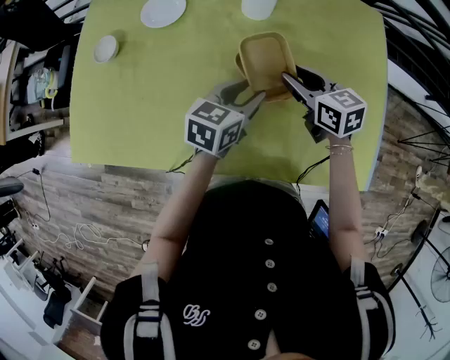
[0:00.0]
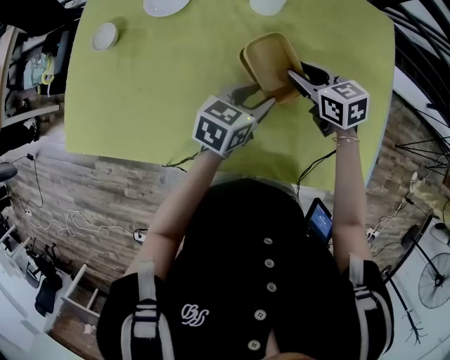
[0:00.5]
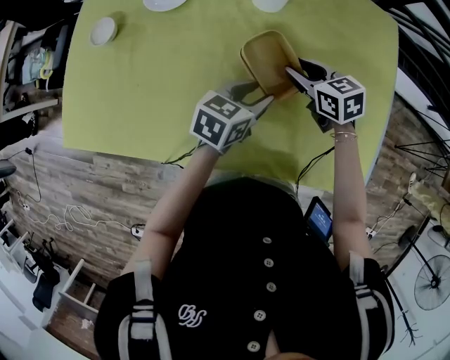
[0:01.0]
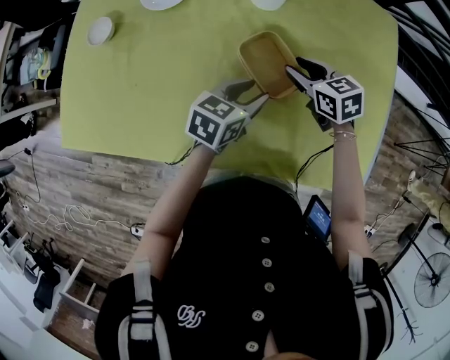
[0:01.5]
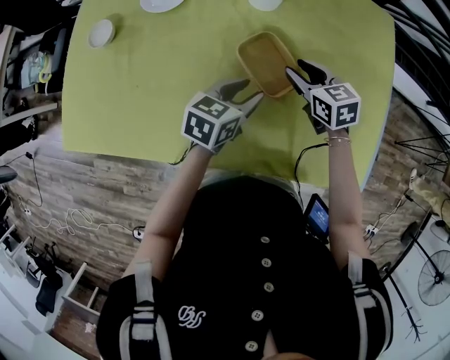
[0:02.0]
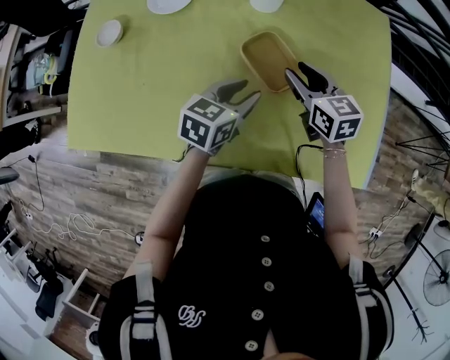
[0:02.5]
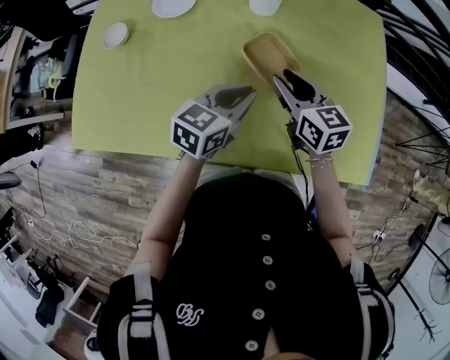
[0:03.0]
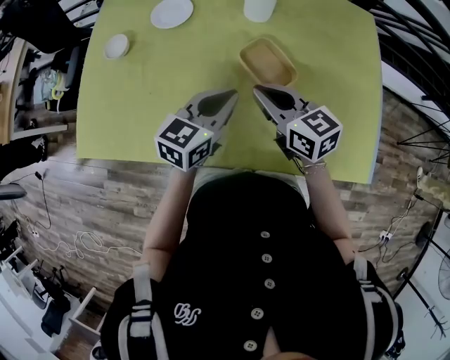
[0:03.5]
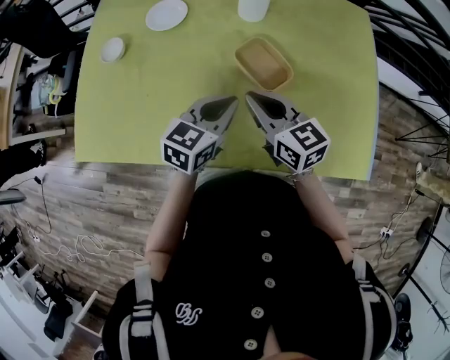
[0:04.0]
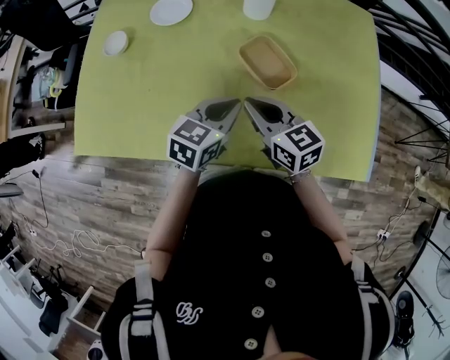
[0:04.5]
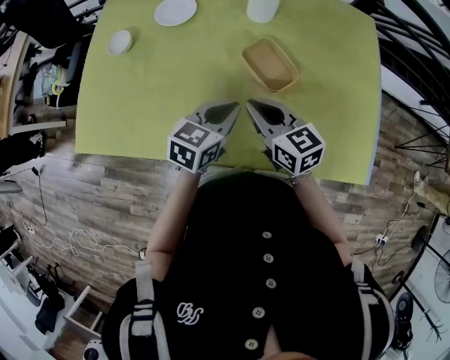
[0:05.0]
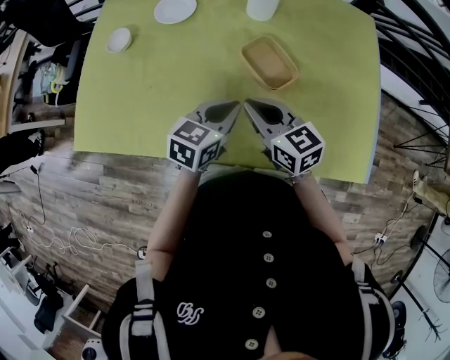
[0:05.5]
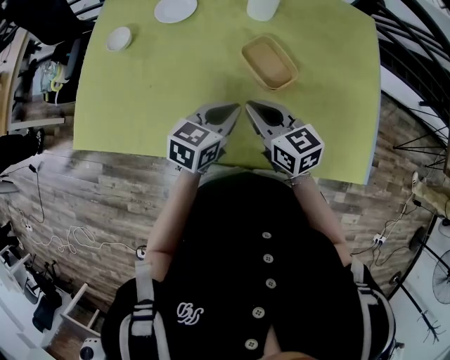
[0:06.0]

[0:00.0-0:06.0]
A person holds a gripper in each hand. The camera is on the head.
0:00.0 to 0:02.0: The right gripper shifts by approximately 5 cm.
0:02.0 to 0:04.0: The right gripper moves backward, upward and to the left, roughly 20 cm, changes its angle by some 20 degrees, and closes. Meanwhile the left gripper travels upward and backward by approximately 10 cm, and closes its fingers.
0:04.0 to 0:06.0: The grippers move only a little.

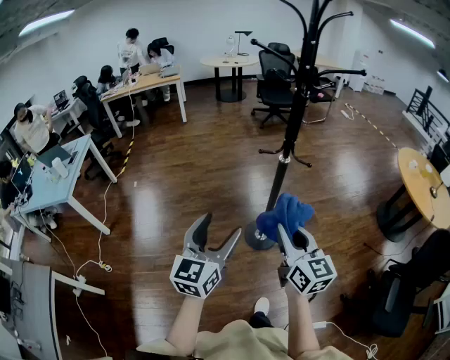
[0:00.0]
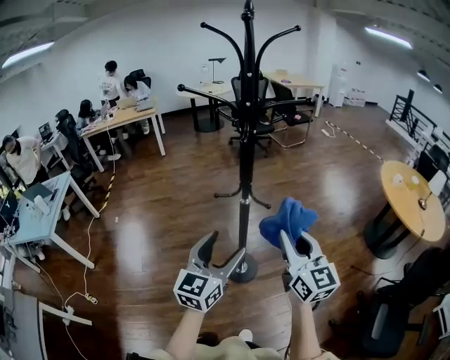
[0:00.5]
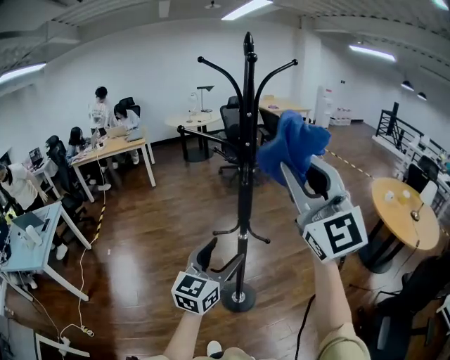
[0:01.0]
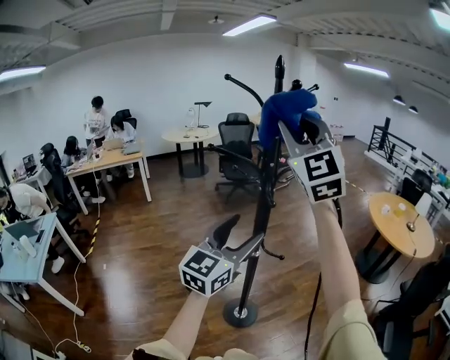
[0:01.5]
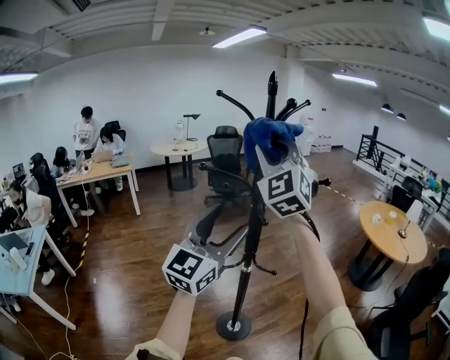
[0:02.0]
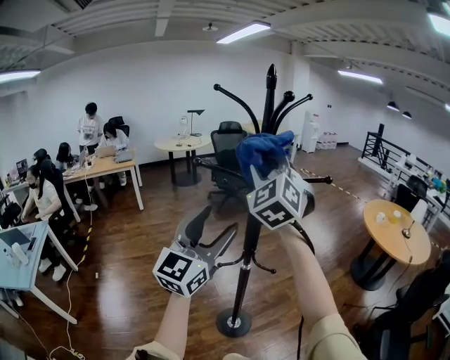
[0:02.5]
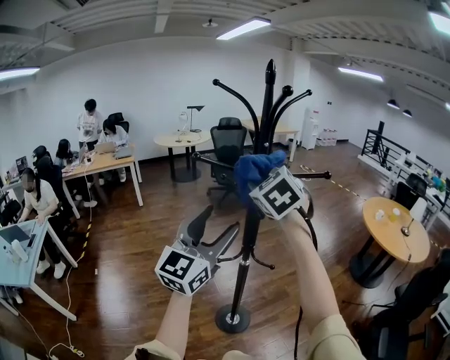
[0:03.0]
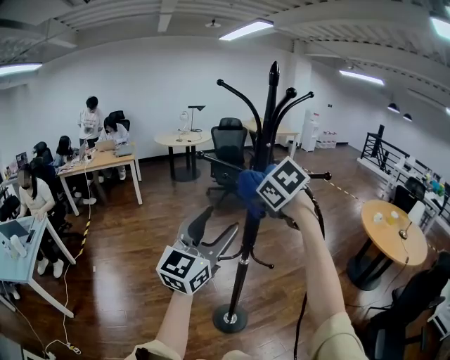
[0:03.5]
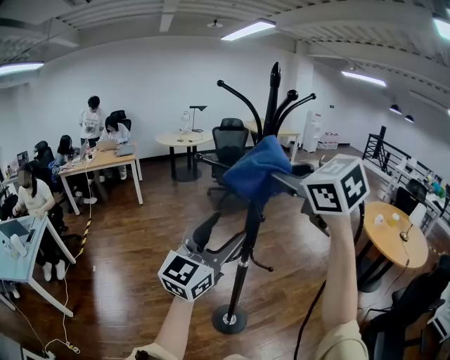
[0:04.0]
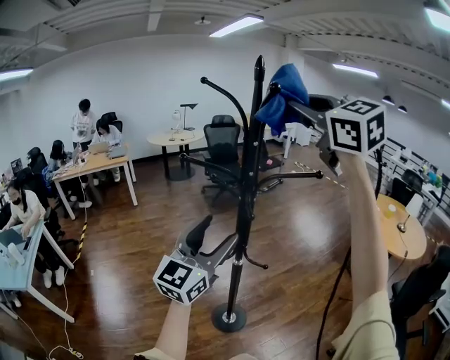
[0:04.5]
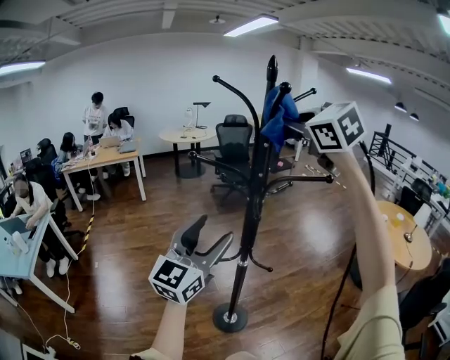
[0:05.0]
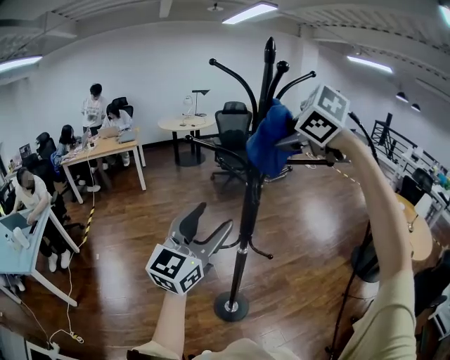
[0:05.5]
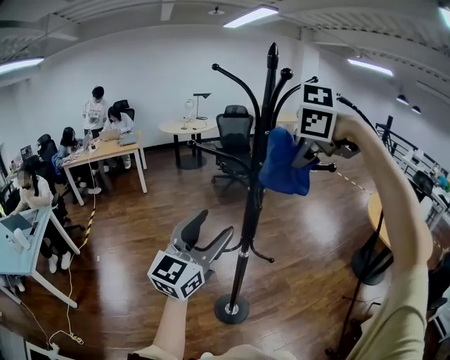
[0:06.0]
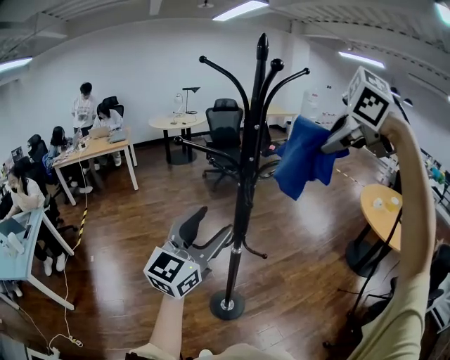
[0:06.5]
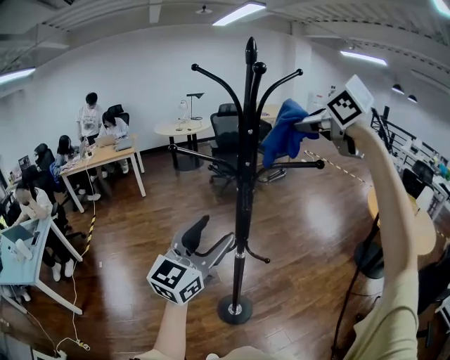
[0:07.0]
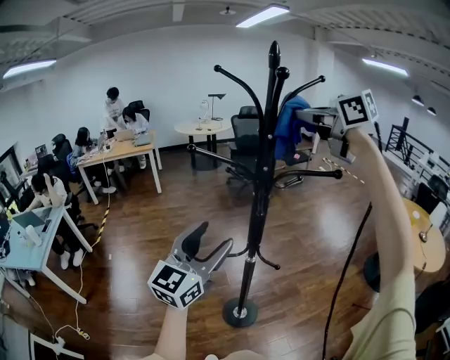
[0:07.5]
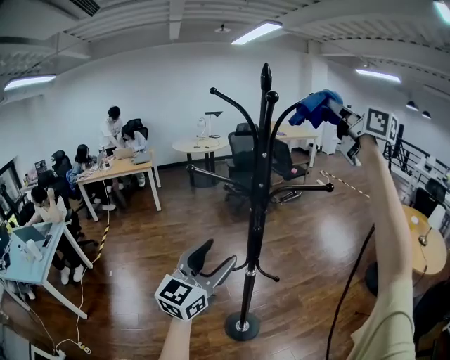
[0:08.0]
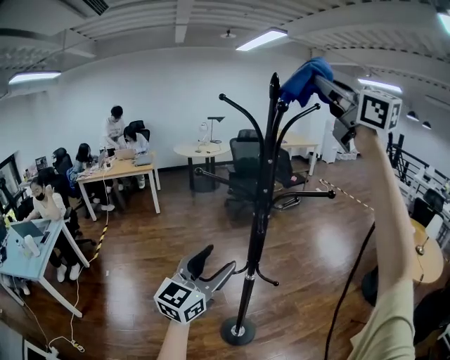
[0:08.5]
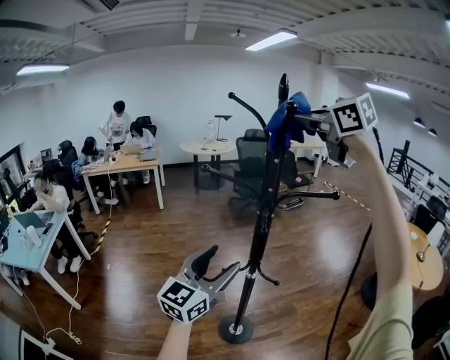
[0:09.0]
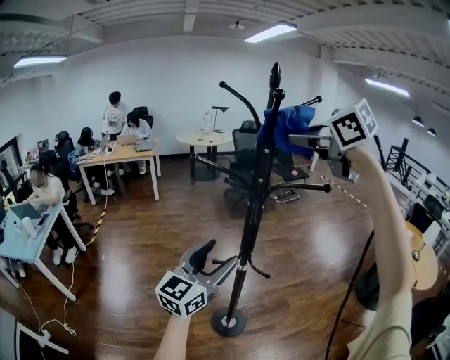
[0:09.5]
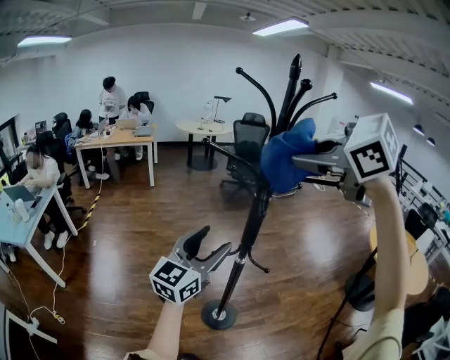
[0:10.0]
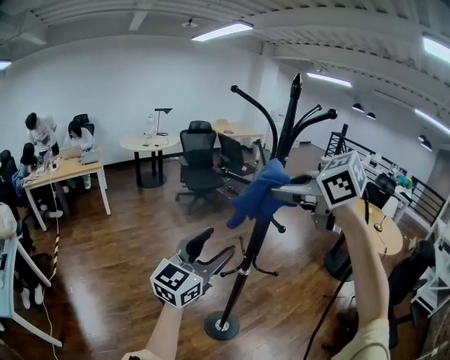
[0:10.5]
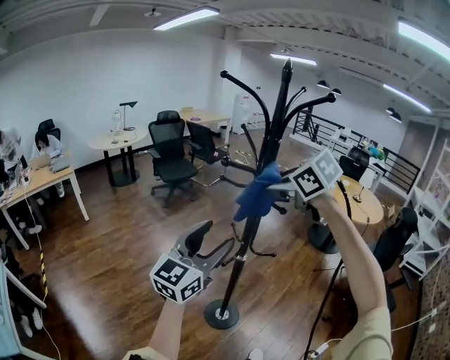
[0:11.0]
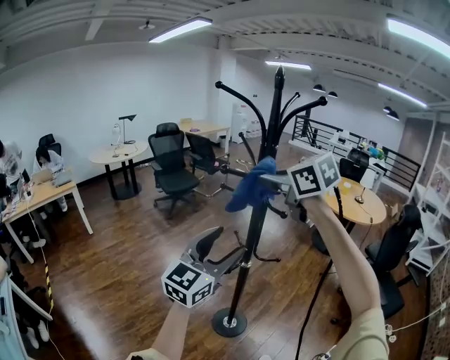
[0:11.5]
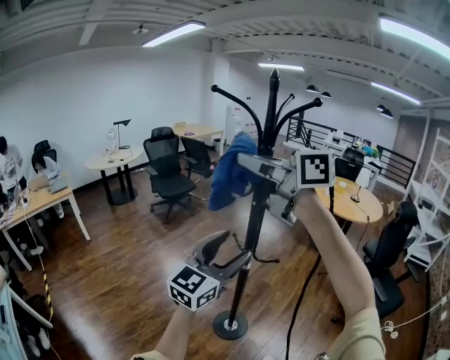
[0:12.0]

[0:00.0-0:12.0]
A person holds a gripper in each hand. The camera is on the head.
0:00.0 to 0:02.0: The left gripper moves forward and upward, approximately 35 cm, and changes its angle by about 30 degrees. The right gripper travels upward and forward by some 50 cm, and rotates around the line of its fingers by about 70 degrees, counterclockwise from behind.
0:02.0 to 0:04.0: The right gripper travels backward by about 5 cm, travels downward and back again, approximately 20 cm each way, and points its fingers some 30 degrees further downward.
0:04.0 to 0:06.0: The right gripper reaches approximately 15 cm upward, then returns, and angles its fingers downward, by about 60 degrees.
0:06.0 to 0:08.0: The right gripper moves upward, some 20 cm, and angles its fingers upward, by some 90 degrees.
0:08.0 to 0:10.0: The right gripper is displaced to the left, downward and backward by roughly 25 cm, and tilts its fingers about 50 degrees downward.
0:10.0 to 0:12.0: The left gripper turns by about 40 degrees; the right gripper reaches about 15 cm downward, then returns, and tilts its fingers some 40 degrees upward.

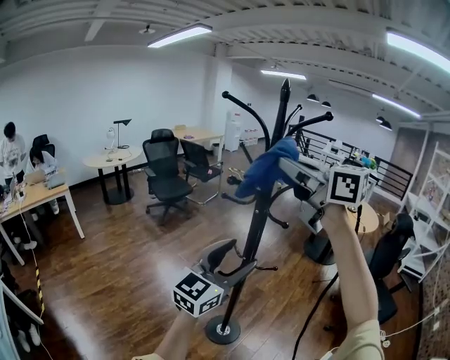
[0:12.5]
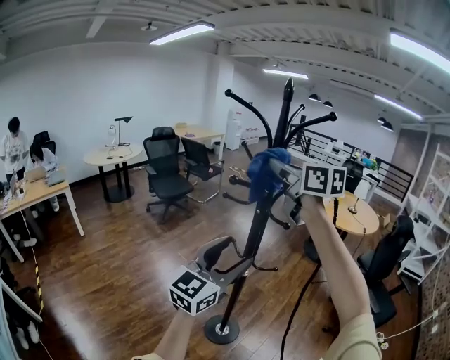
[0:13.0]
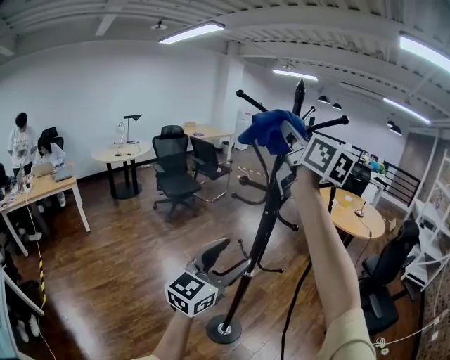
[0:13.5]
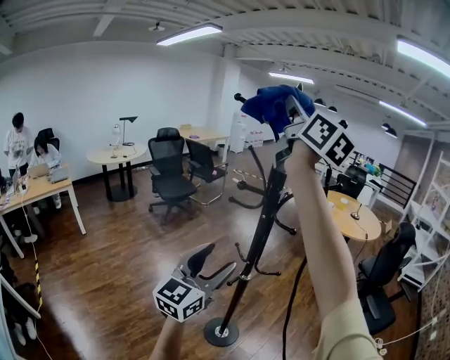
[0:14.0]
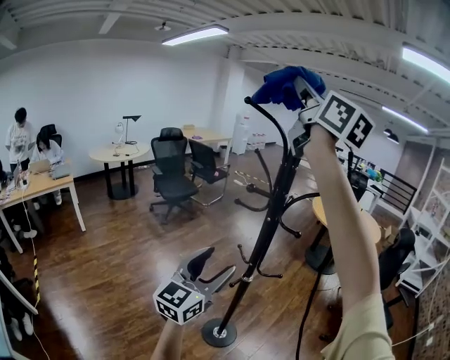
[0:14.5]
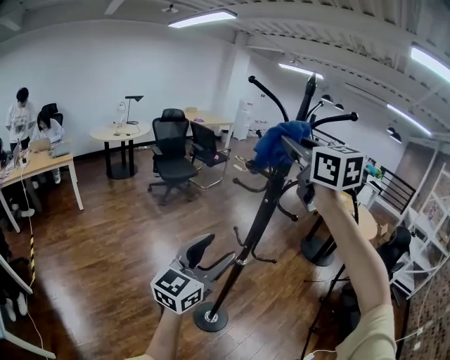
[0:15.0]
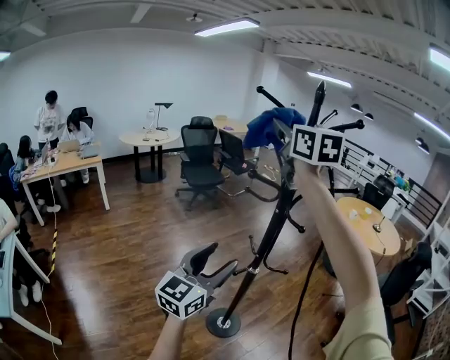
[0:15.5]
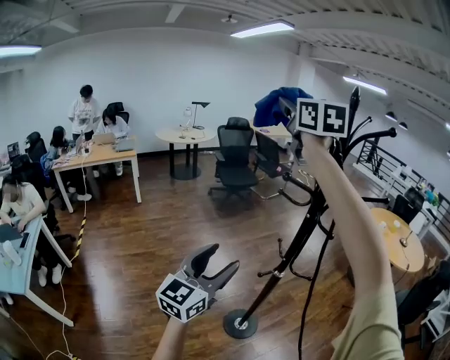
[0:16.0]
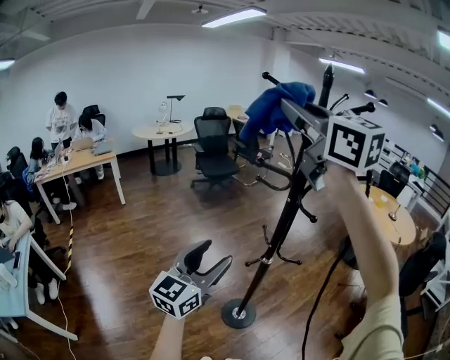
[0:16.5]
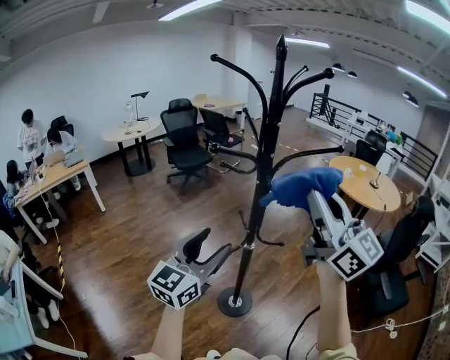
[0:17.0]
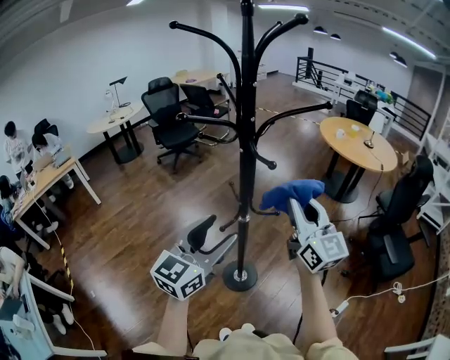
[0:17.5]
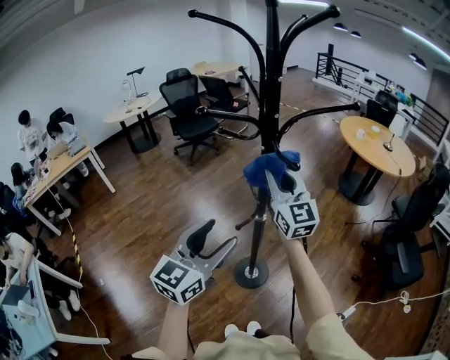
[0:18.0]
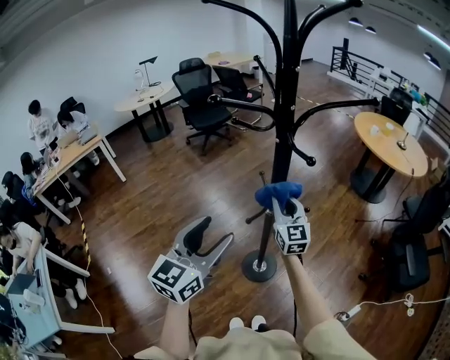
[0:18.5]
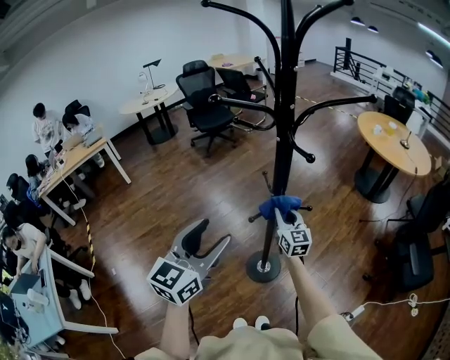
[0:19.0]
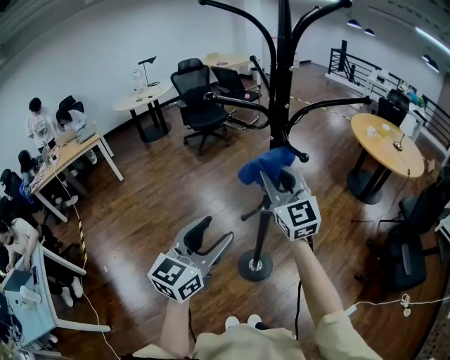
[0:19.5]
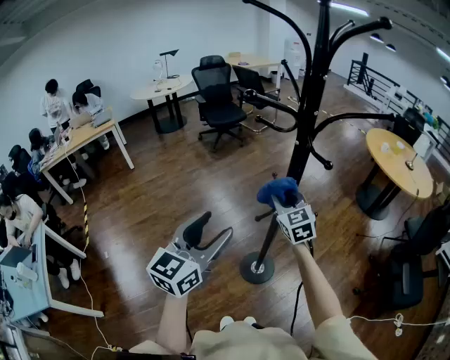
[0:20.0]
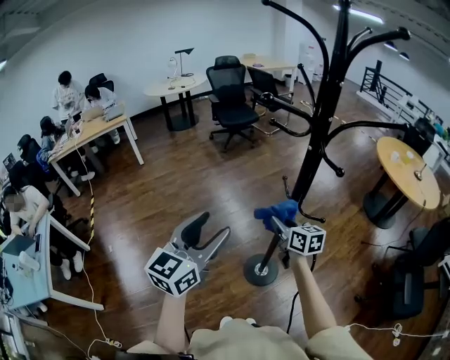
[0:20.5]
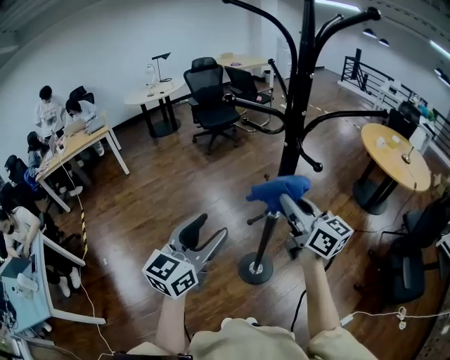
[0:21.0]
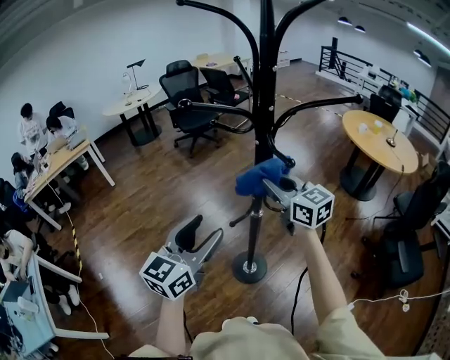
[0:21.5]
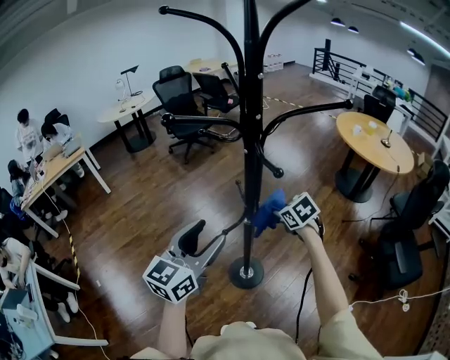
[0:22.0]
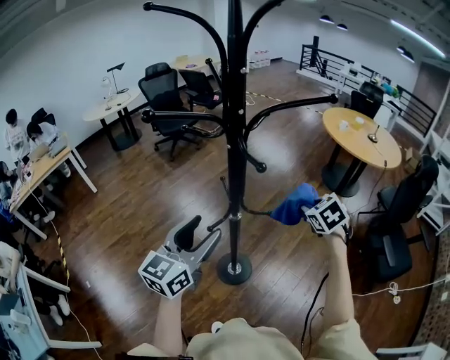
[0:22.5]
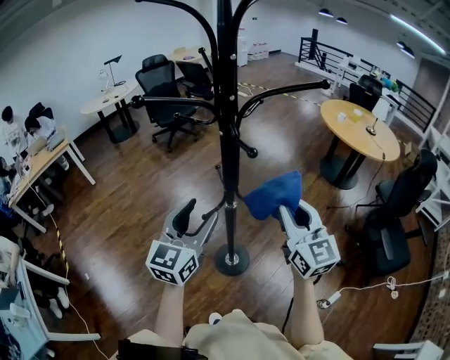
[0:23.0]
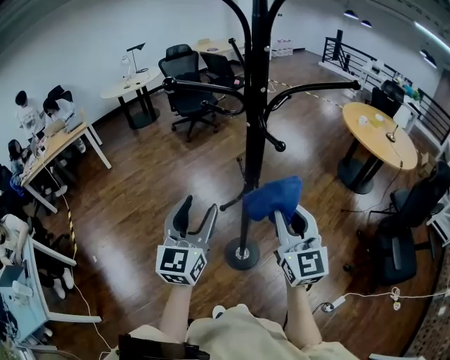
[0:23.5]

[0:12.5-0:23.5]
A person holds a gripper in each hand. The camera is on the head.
0:12.5 to 0:14.5: The right gripper is displaced upward by about 20 cm, and turns by some 30 degrees; the left gripper is displaced to the left by approximately 5 cm.
0:14.5 to 0:16.0: The left gripper changes place by roughly 5 cm, and rotates some 20 degrees. The right gripper shifts about 20 cm to the left, downward and forward, and rotates roughly 30 degrees.
0:16.0 to 0:18.0: The left gripper moves approximately 10 cm. The right gripper is displaced downward by approximately 35 cm.
0:18.0 to 0:20.0: The left gripper is displaced to the left by about 5 cm, while the right gripper swings up and down, approximately 25 cm each way, with 2 reversals, and angles its fingers downward, by roughly 30 degrees.
0:20.0 to 0:21.5: The right gripper goes approximately 10 cm upward and to the right, and turns by some 30 degrees. Meanwhile the left gripper travels to the right by about 5 cm.
0:21.5 to 0:23.5: The right gripper travels backward by some 15 cm, travels to the right and back again, approximately 20 cm each way, and rotates about 30 degrees; the left gripper rotates some 20 degrees.
